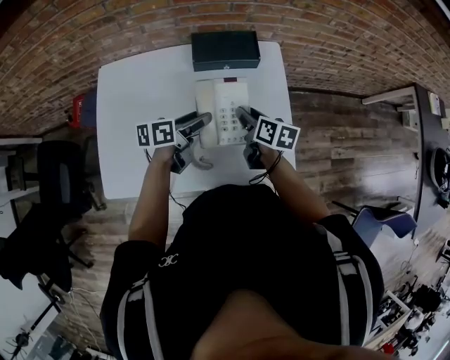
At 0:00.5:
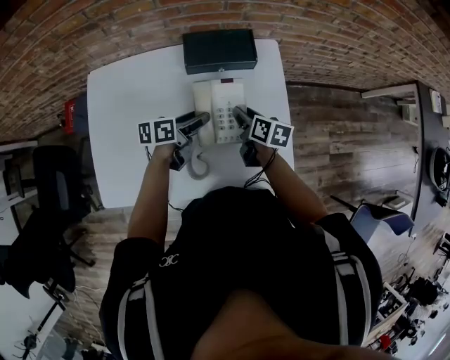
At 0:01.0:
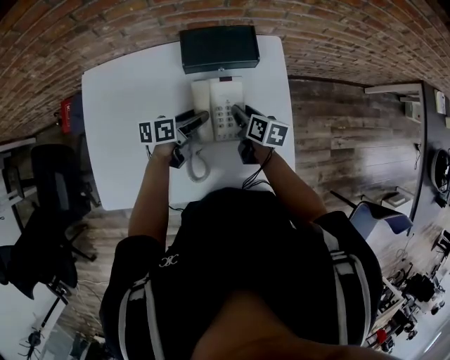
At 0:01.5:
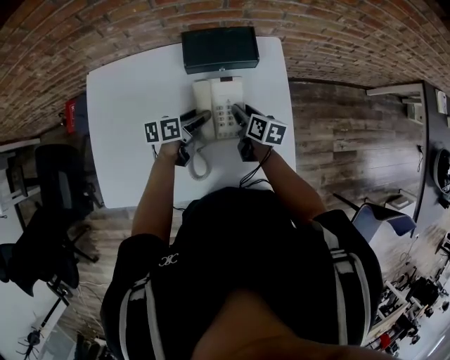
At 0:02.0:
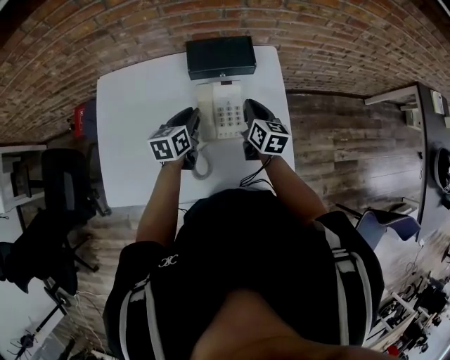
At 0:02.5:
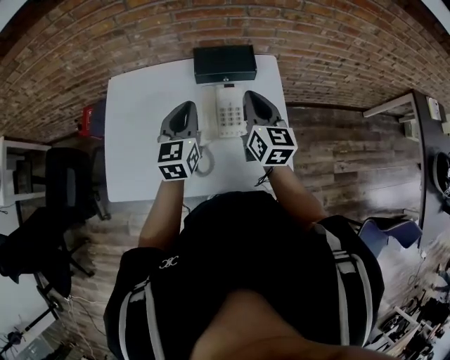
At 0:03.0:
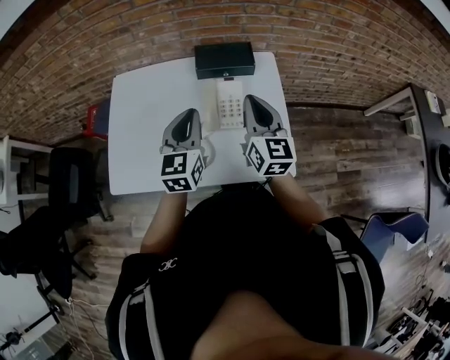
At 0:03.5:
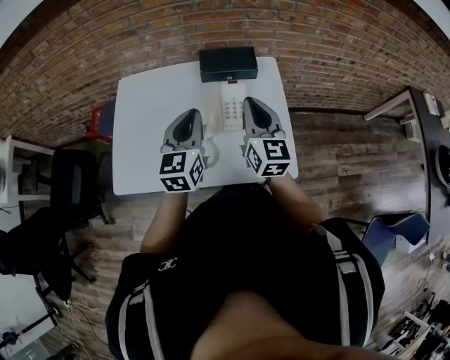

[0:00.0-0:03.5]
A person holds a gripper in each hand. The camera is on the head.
0:00.0 to 0:02.0: The grippers both shift forward by approximately 5 cm. The right gripper reaches about 10 cm downward, then returns, and closes up, while the left gripper moves about 10 cm downward and comes back, rotates some 30 degrees, and closes its fingers.
0:02.0 to 0:03.5: The two grippers go approximately 25 cm upward and backward. The right gripper changes its angle by some 30 degrees, while the left gripper changes its angle by some 30 degrees.

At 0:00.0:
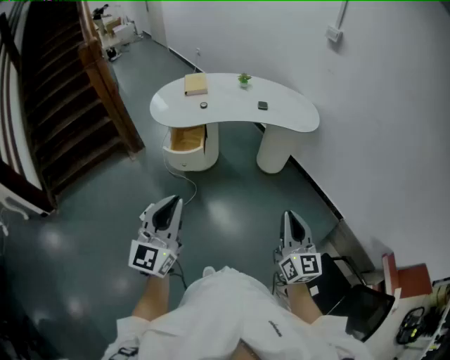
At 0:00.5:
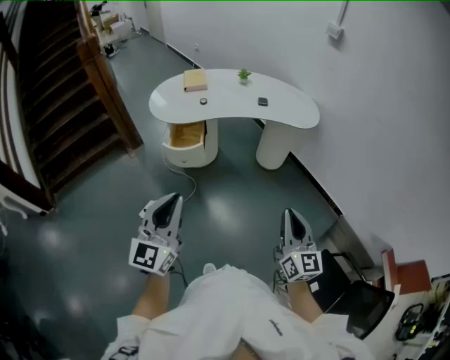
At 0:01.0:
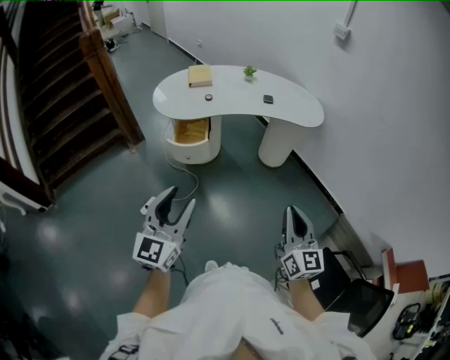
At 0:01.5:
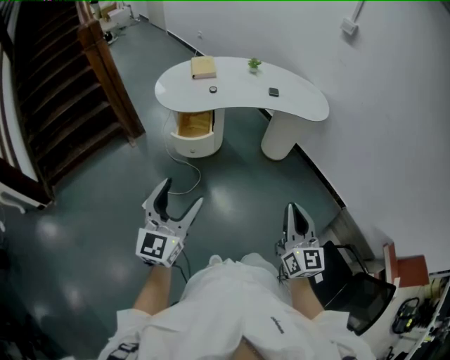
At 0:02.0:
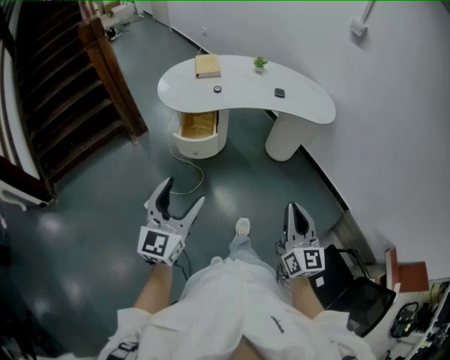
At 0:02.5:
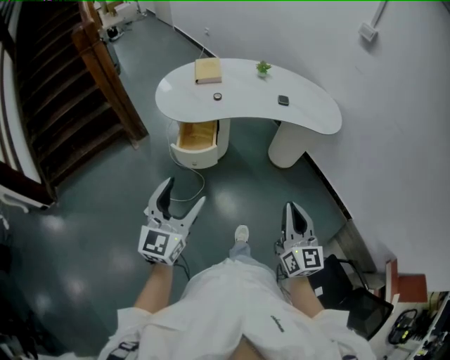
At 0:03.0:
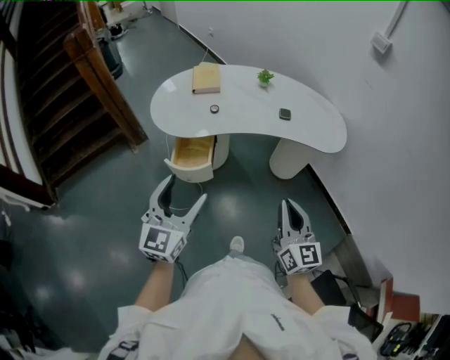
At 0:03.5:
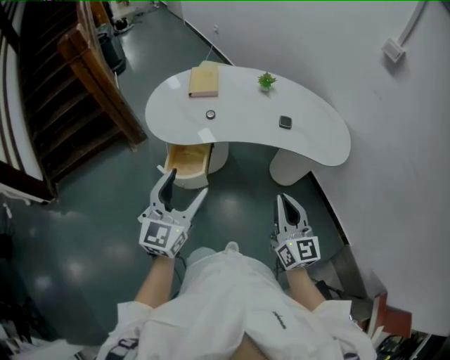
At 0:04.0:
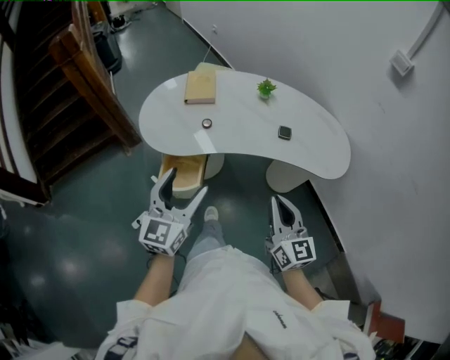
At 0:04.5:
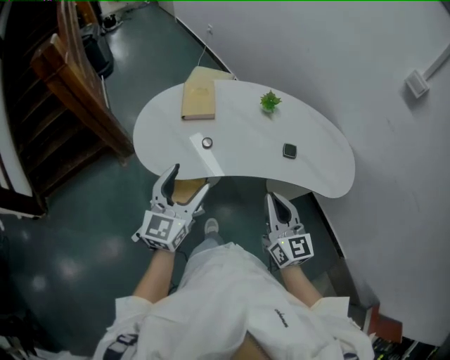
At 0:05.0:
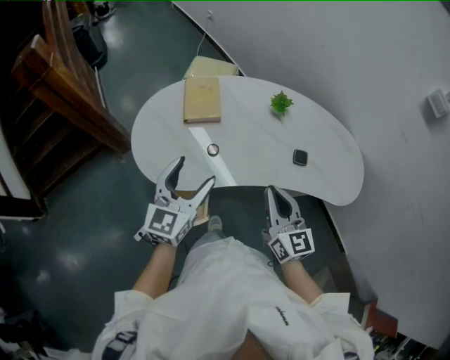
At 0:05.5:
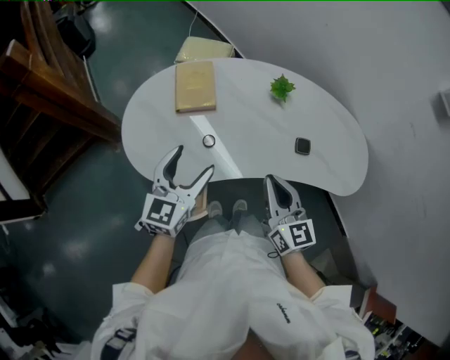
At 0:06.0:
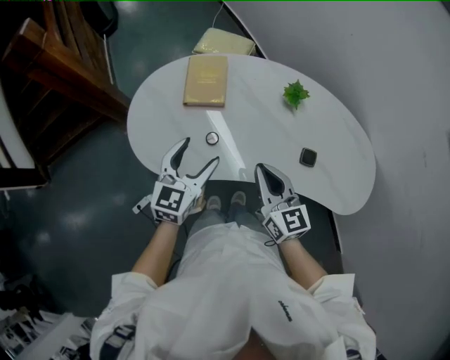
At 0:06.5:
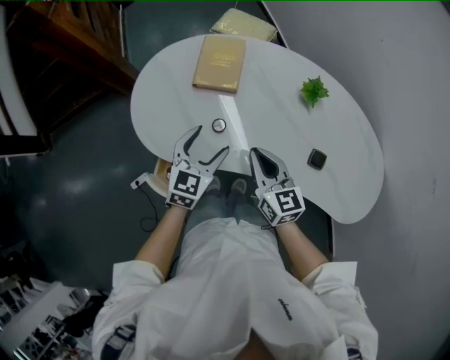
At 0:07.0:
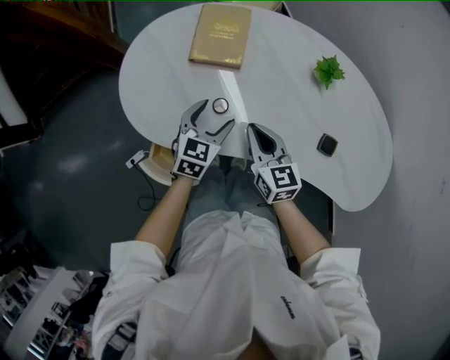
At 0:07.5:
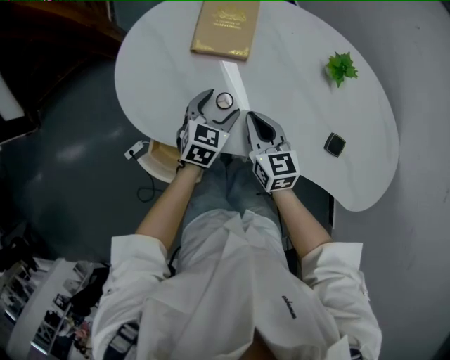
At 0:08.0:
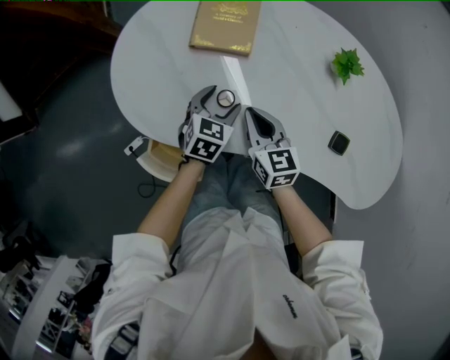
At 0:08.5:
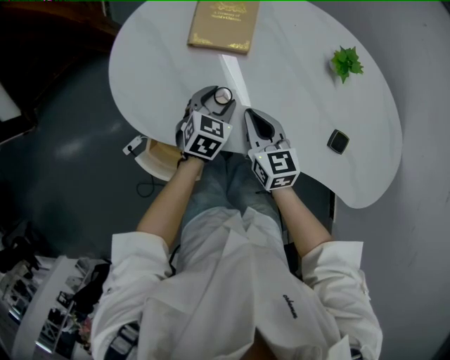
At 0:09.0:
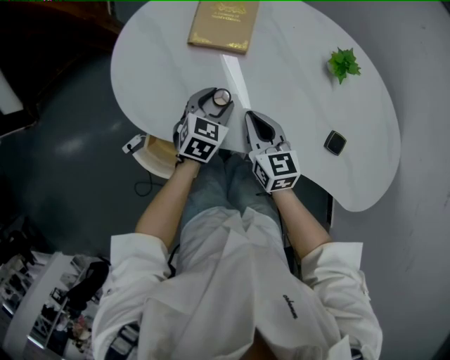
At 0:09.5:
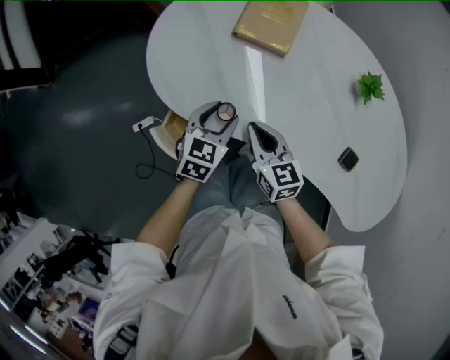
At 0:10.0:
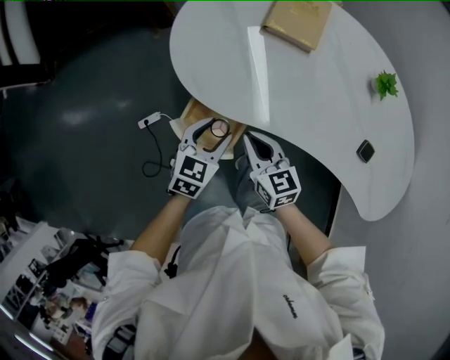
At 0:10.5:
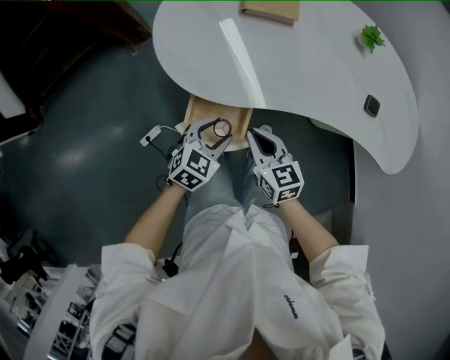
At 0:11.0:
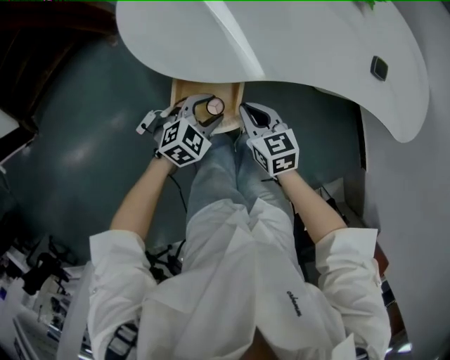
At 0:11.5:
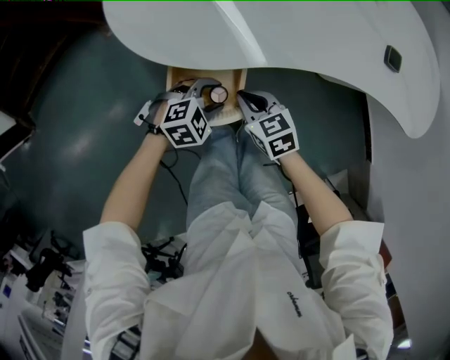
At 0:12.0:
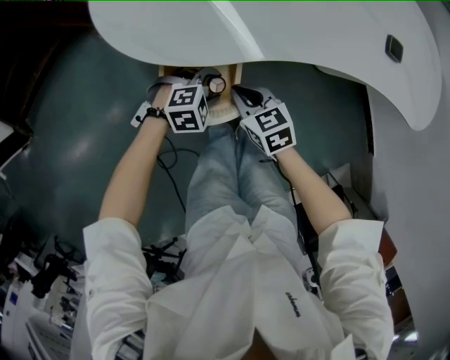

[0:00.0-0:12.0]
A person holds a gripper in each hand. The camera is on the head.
0:00.0 to 0:02.0: The right gripper travels to the left by approximately 10 cm. Meanwhile the left gripper moves to the left, forward and downward, approximately 10 cm, and opens.
0:02.0 to 0:04.0: The grippers both shift forward by some 40 cm.
0:04.0 to 0:06.0: The grippers both shift forward by about 35 cm.
0:06.0 to 0:08.0: The right gripper moves downward and forward, approximately 20 cm, while the left gripper goes about 25 cm downward, and rotates roughly 30 degrees.
0:08.0 to 0:10.0: The left gripper travels backward and to the left by some 25 cm; the right gripper heads to the left and backward, covering approximately 20 cm.
0:10.0 to 0:12.0: The two grippers go approximately 20 cm downward. The right gripper swivels about 20 degrees. Meanwhile the left gripper turns by some 80 degrees.

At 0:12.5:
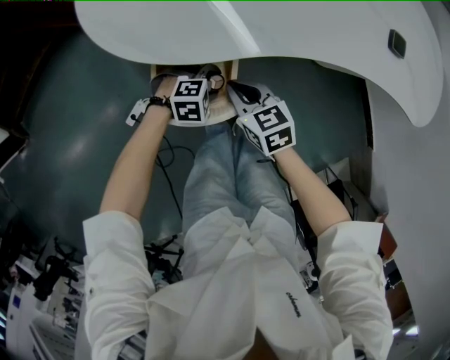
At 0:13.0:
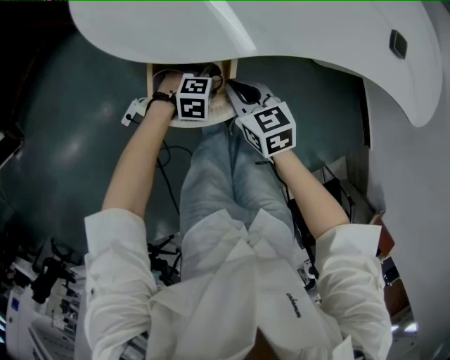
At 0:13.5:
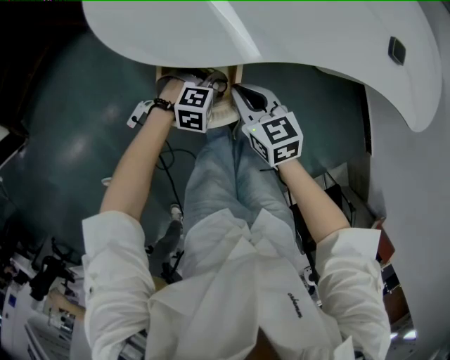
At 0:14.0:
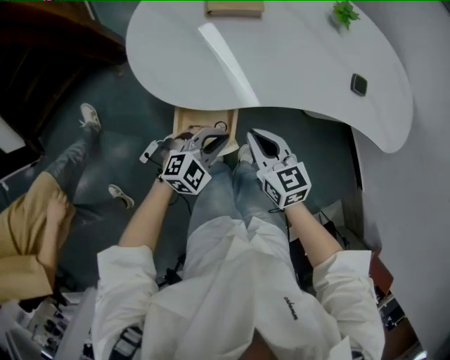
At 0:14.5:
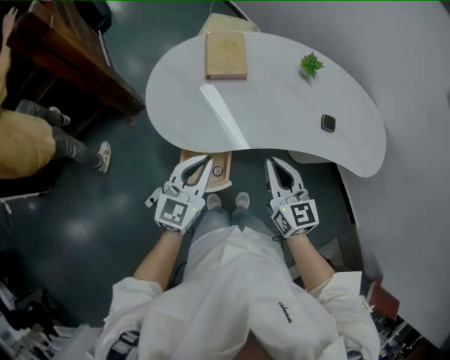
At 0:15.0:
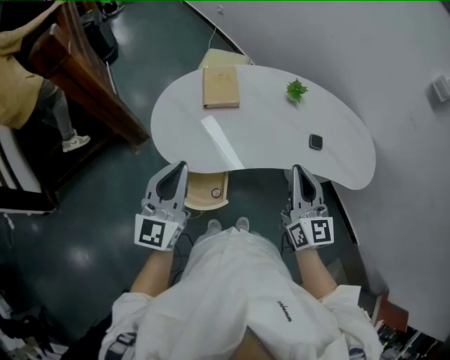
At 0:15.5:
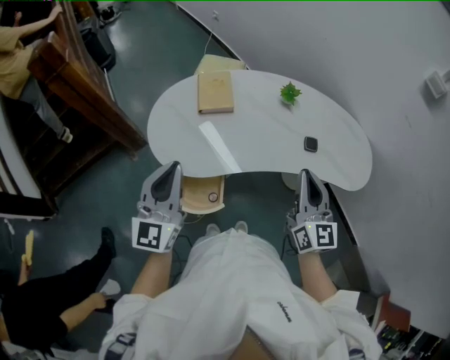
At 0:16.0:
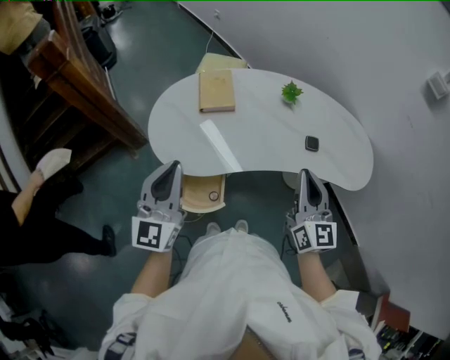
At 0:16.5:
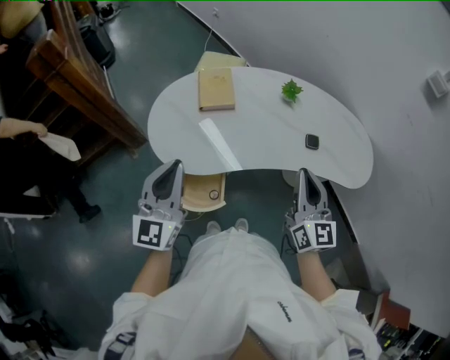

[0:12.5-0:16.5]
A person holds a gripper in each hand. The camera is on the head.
0:12.5 to 0:14.5: The grippers both shift upward by about 40 cm. The right gripper rotates about 40 degrees; the left gripper tips its fingers upward by roughly 50 degrees, and closes.
0:14.5 to 0:16.5: The left gripper goes about 15 cm upward, and changes its angle by approximately 20 degrees. Meanwhile the right gripper moves upward and to the right, approximately 15 cm, and turns by roughly 20 degrees.

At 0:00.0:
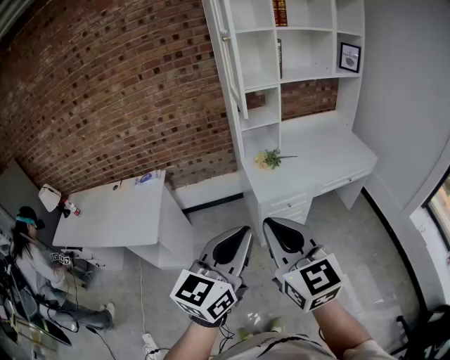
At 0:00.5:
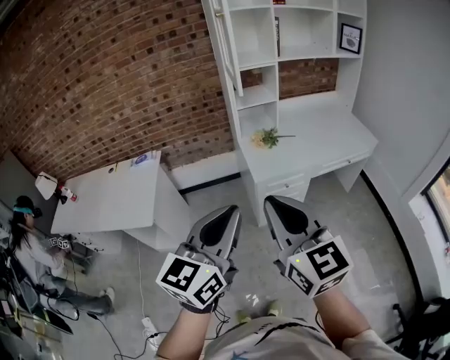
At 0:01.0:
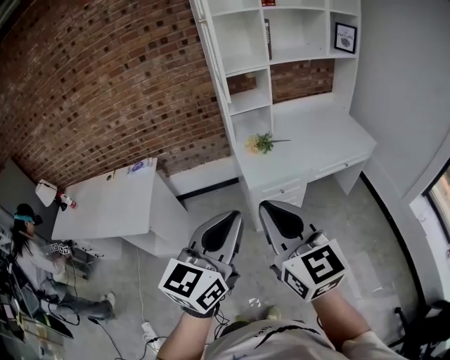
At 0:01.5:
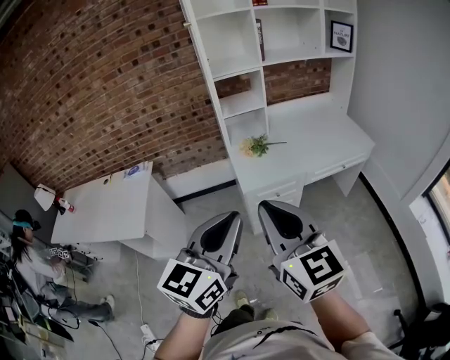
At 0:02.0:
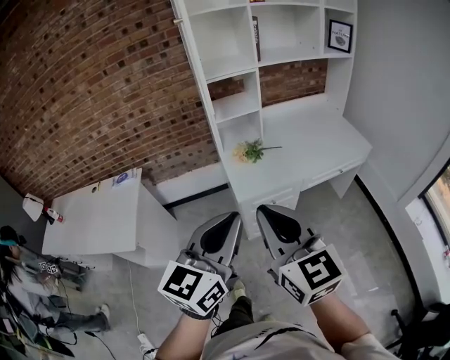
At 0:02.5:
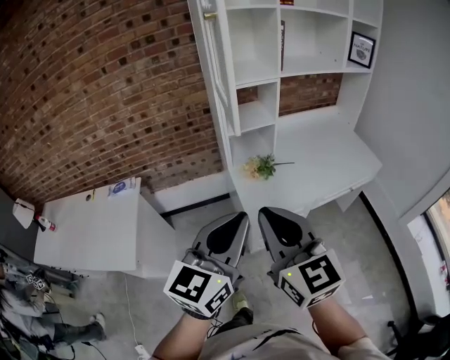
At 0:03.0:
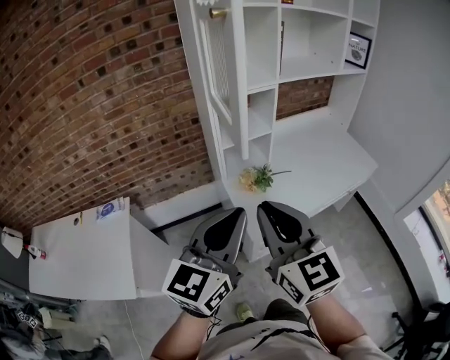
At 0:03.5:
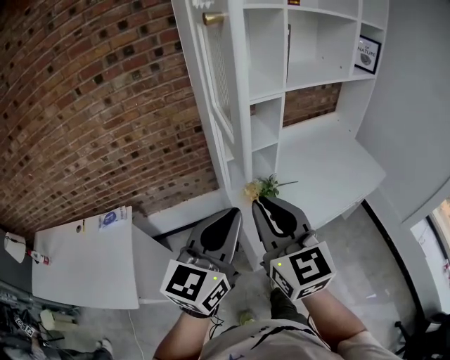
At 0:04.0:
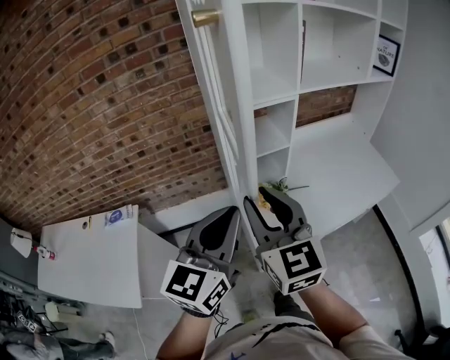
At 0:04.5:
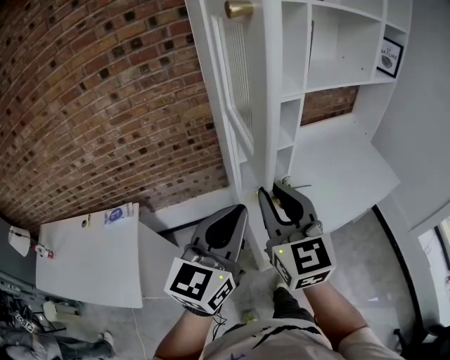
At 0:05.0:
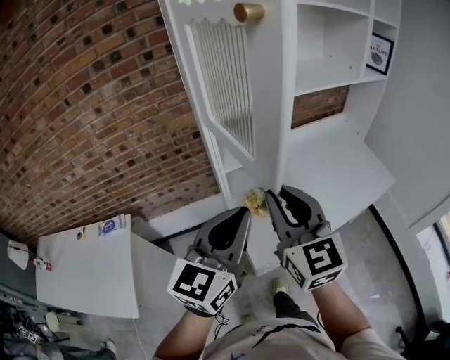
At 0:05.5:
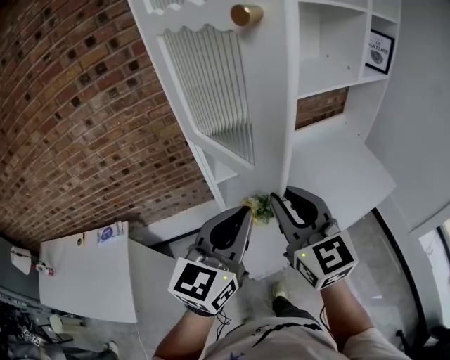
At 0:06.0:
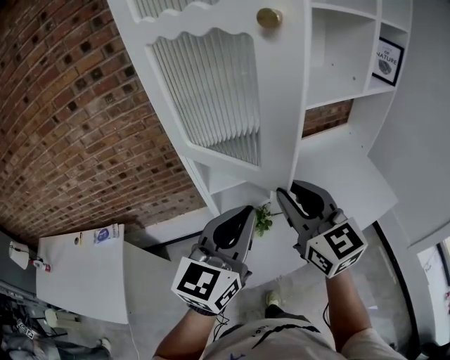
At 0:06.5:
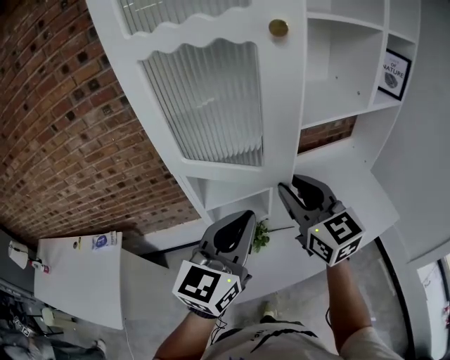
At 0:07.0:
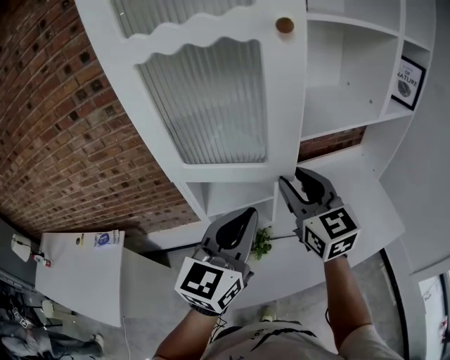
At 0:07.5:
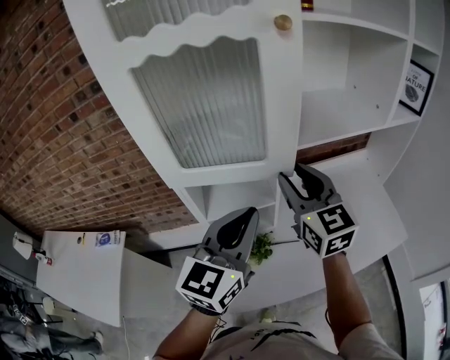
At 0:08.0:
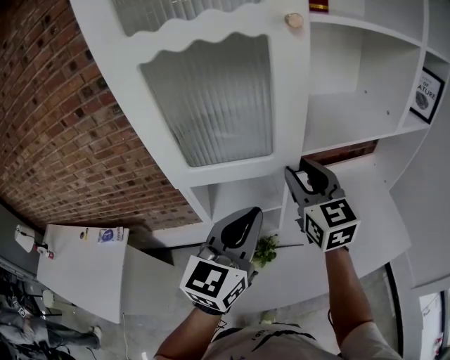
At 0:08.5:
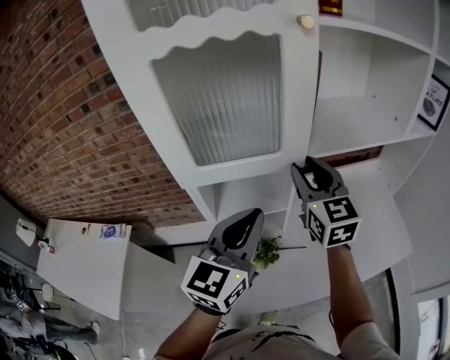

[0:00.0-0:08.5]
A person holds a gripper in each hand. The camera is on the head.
0:00.0 to 0:02.0: The two grippers go roughly 15 cm forward and to the right.
0:02.0 to 0:04.0: The grippers both shift forward by about 35 cm. The right gripper opens up.
0:04.0 to 0:06.5: The two grippers go roughly 25 cm forward and to the right.
0:06.5 to 0:08.5: The right gripper shifts some 15 cm forward, while the left gripper heads forward, covering some 10 cm.
